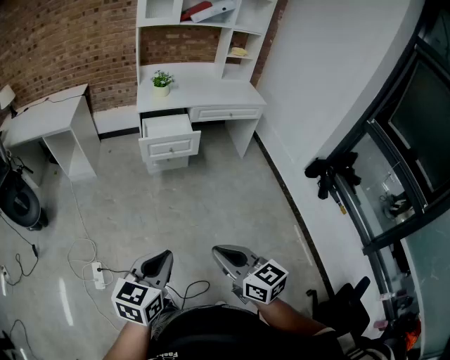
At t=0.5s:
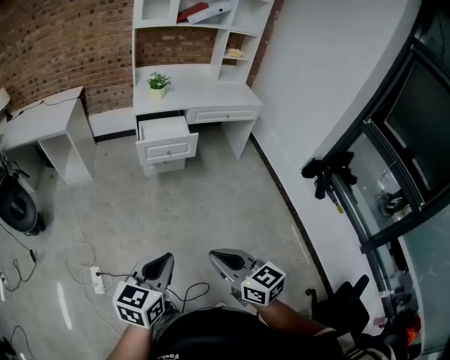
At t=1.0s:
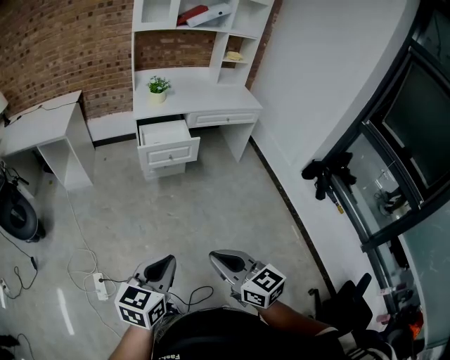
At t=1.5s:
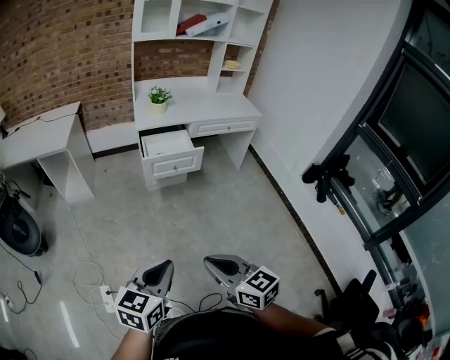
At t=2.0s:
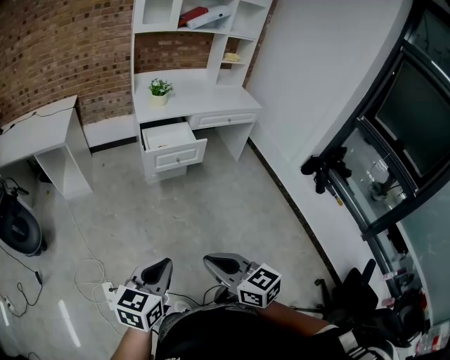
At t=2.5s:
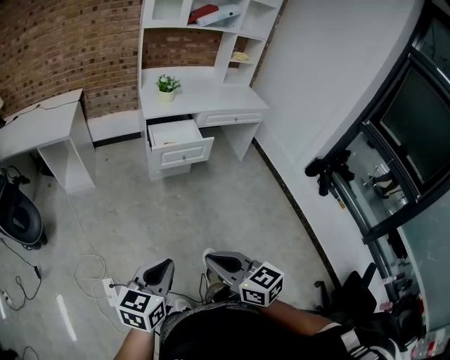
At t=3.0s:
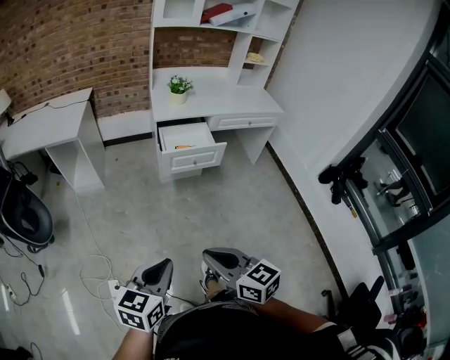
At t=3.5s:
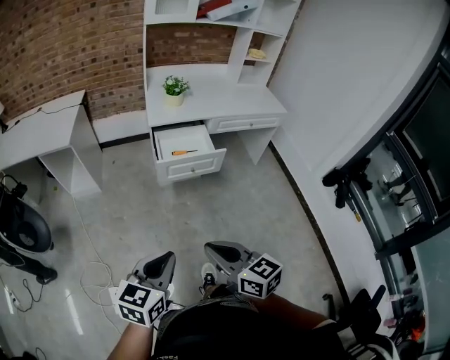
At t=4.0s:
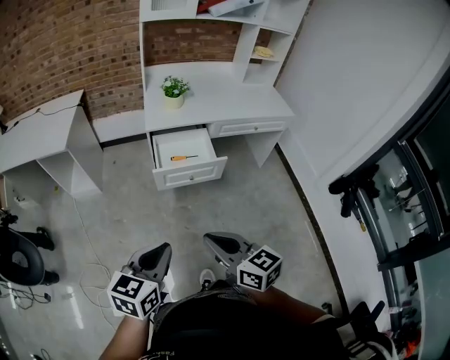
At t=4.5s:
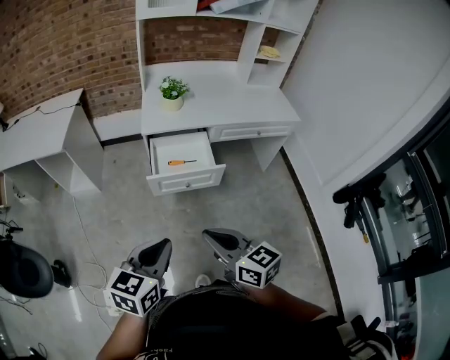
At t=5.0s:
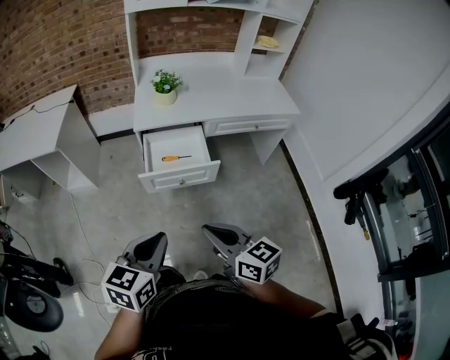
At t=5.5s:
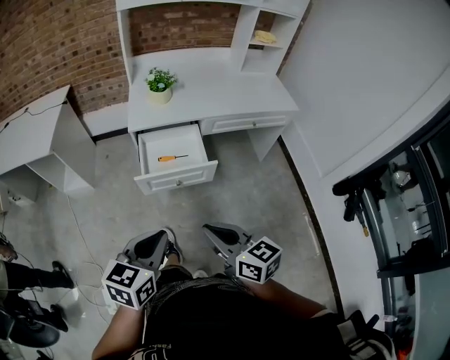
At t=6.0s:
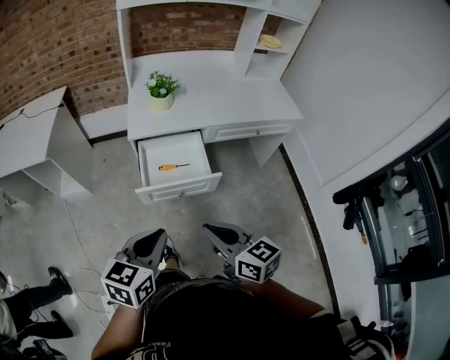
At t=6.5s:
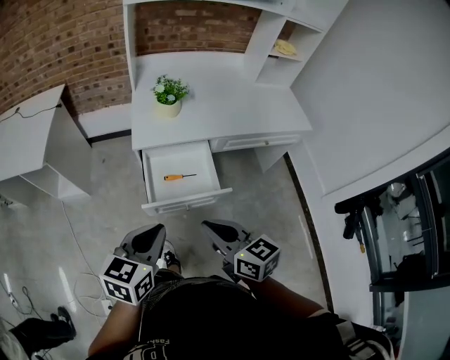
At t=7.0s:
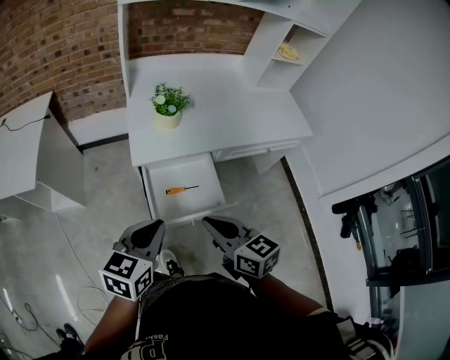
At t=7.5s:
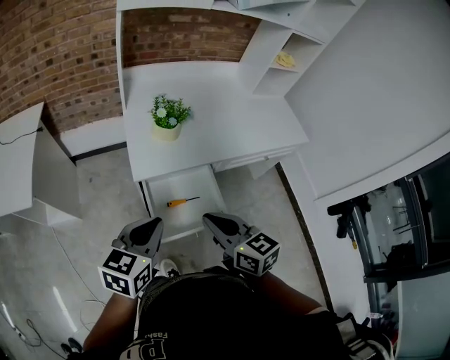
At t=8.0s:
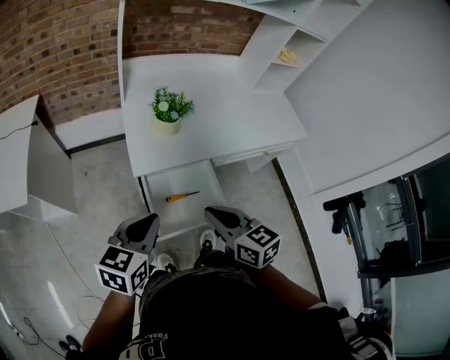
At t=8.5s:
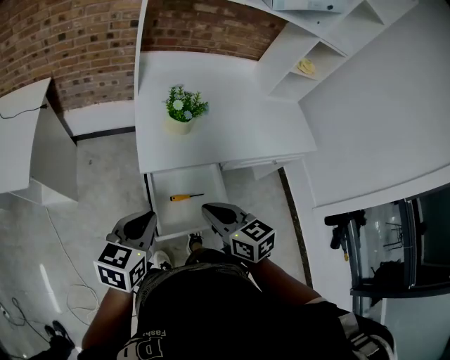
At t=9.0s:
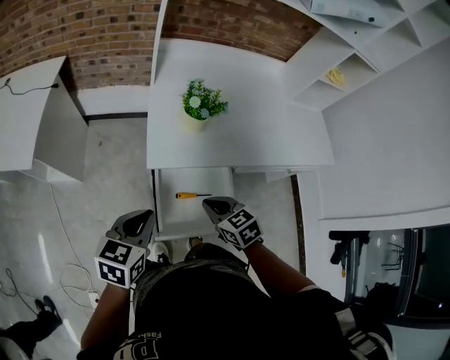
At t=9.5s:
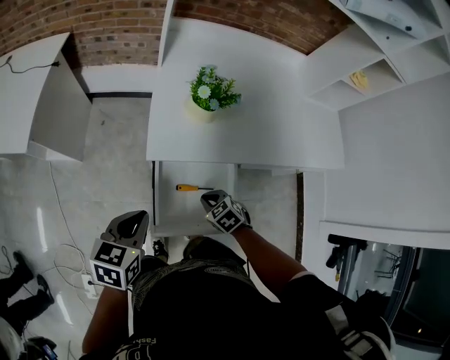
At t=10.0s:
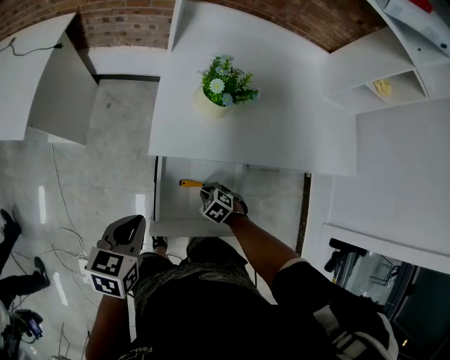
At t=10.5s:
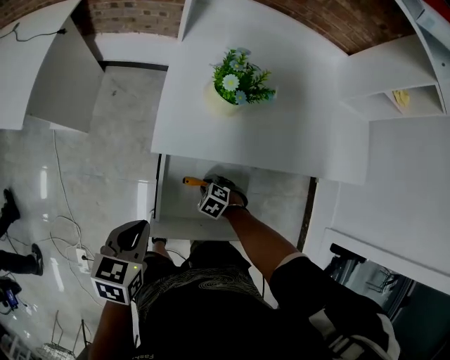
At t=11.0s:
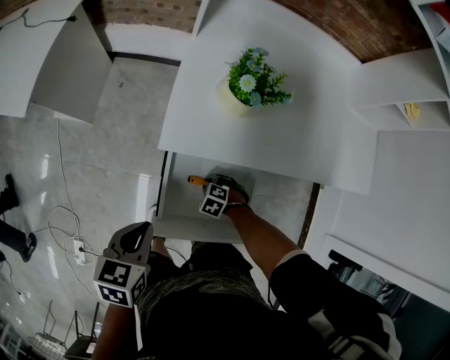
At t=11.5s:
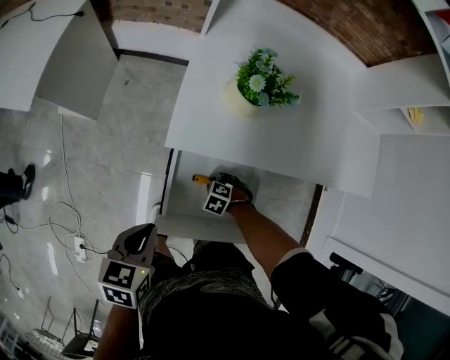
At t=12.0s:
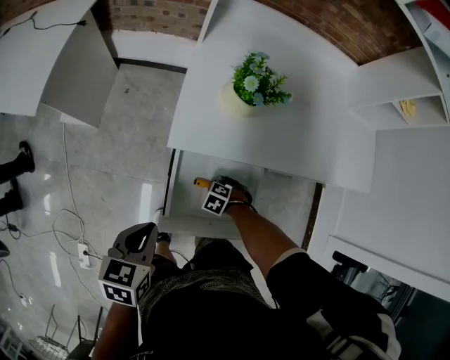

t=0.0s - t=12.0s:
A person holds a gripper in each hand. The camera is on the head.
t=0.0s - t=2.0s: Both grippers move to the left, approximately 15 cm.
t=2.0s - t=4.0s: The two grippers go roughly 25 cm forward.
t=4.0s - t=6.0s: The two grippers go roughly 20 cm forward and to the right.
t=6.0s - t=8.0s: Both grippers travel together forward and to the left, approximately 30 cm.
t=8.0s - t=10.0s: The left gripper is displaced downward by roughly 10 cm, and swivels about 30 degrees. Meanwhile the right gripper goes about 35 cm downward, and tilts its fingers about 50 degrees downward.
t=10.0s - t=12.0s: The right gripper shifts about 5 cm downward, and swivels about 20 degrees.

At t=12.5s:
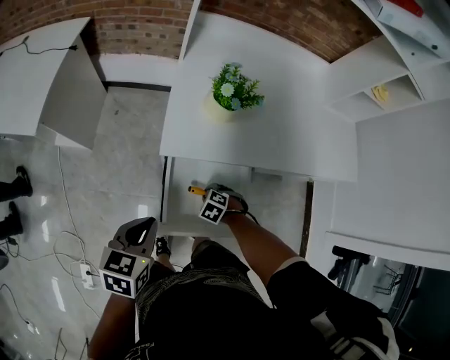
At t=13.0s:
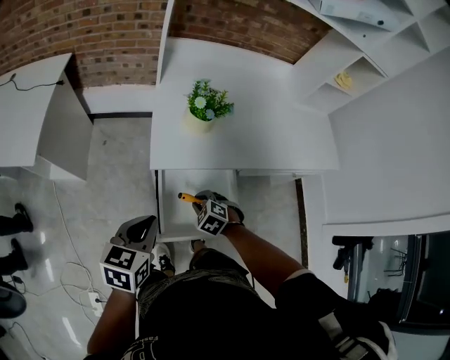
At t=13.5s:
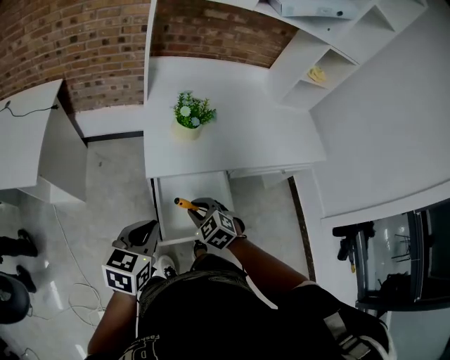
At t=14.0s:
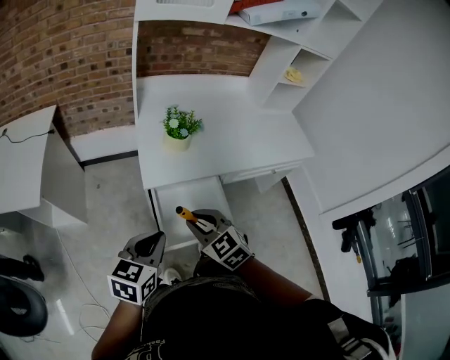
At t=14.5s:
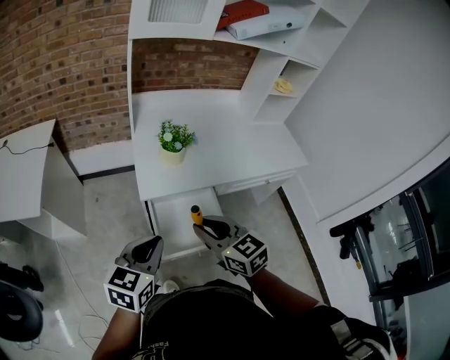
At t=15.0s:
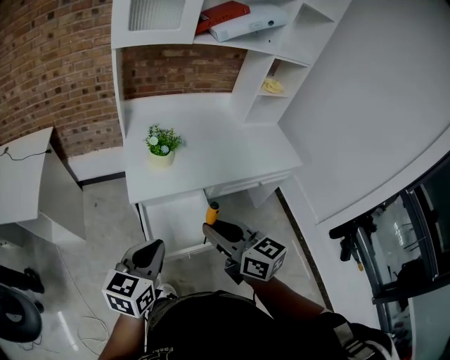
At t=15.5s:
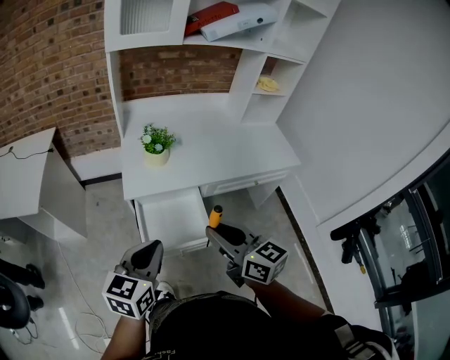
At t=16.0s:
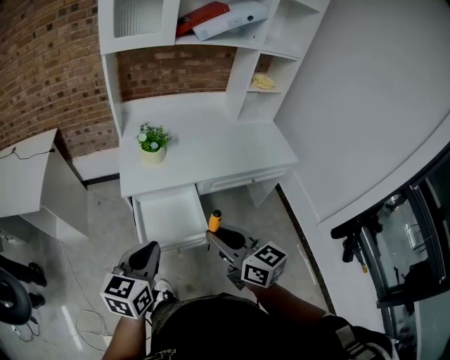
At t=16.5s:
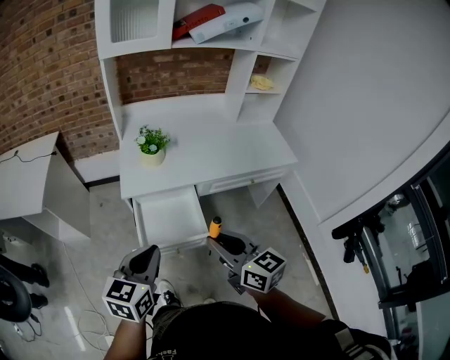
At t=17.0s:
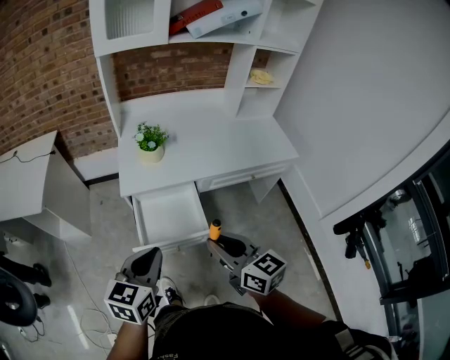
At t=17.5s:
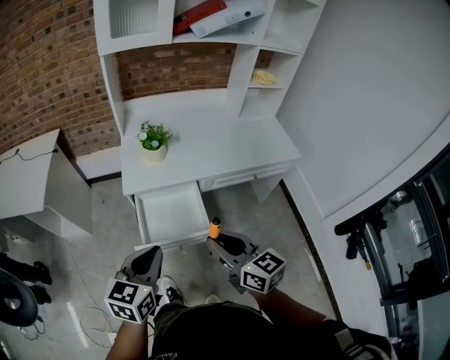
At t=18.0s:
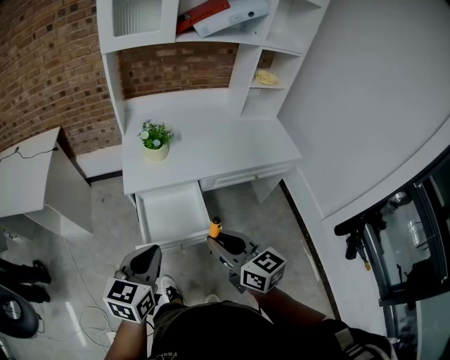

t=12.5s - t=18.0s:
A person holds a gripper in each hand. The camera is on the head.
t=12.5s - t=14.5s: The left gripper goes approximately 15 cm upward, and rotates some 30 degrees; the right gripper goes about 40 cm upward, and tips its fingers upward by some 60 degrees.
t=14.5s - t=16.0s: The two grippers go some 15 cm to the right and backward.
t=16.0s - t=18.0s: There are only small adjustments of the grippers.

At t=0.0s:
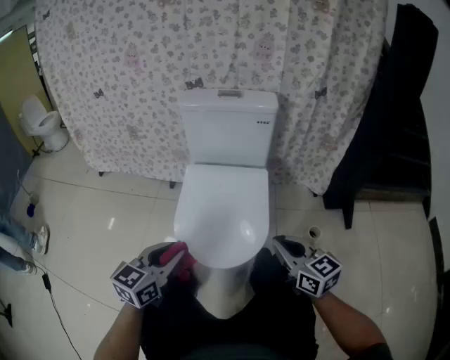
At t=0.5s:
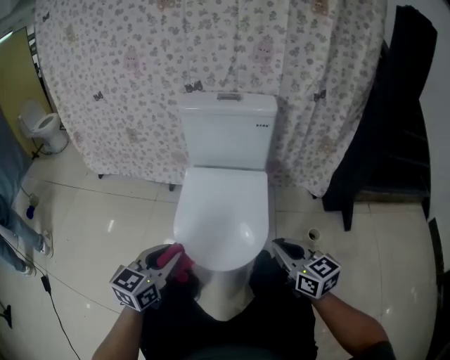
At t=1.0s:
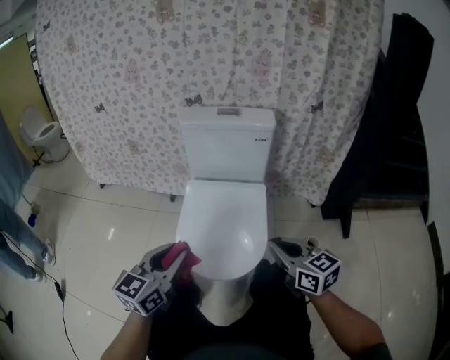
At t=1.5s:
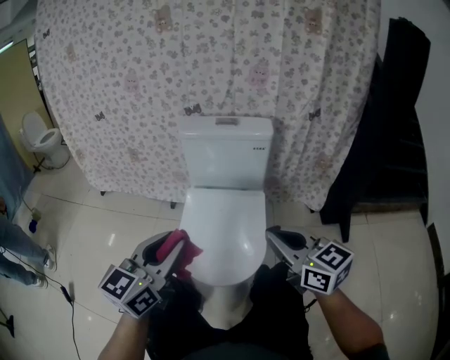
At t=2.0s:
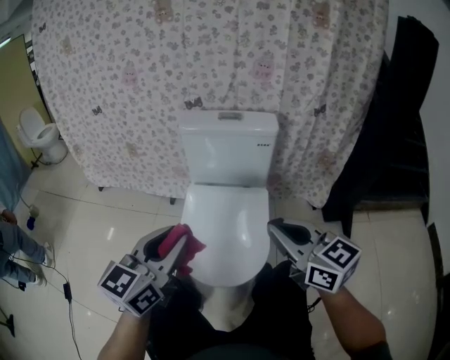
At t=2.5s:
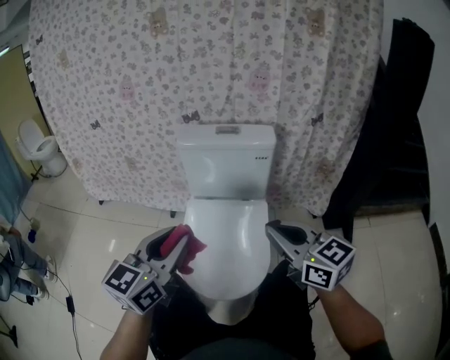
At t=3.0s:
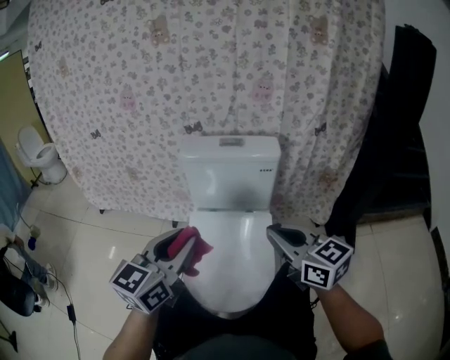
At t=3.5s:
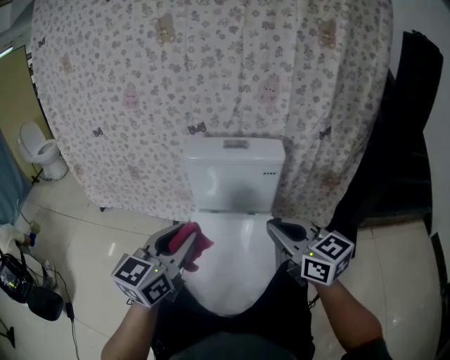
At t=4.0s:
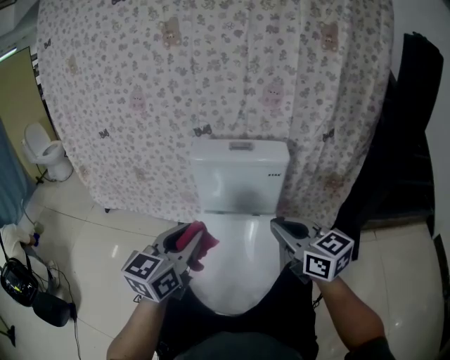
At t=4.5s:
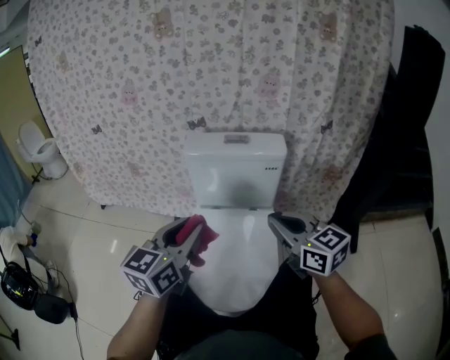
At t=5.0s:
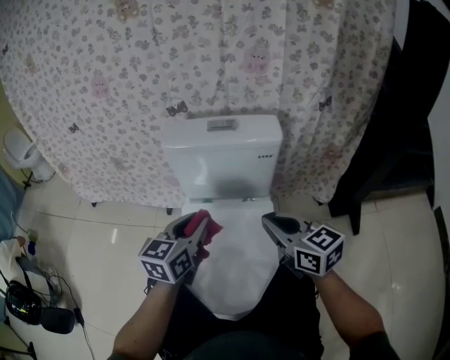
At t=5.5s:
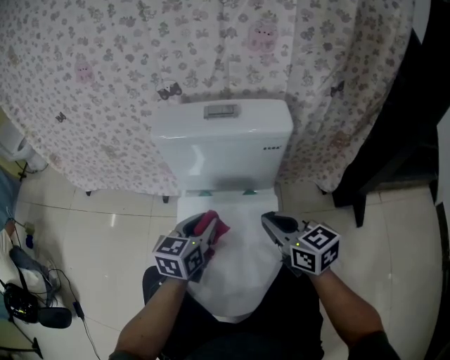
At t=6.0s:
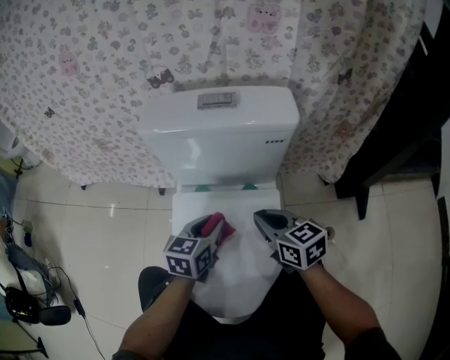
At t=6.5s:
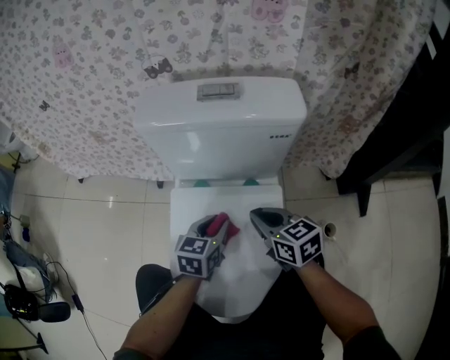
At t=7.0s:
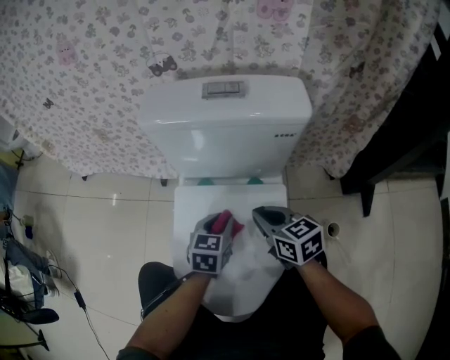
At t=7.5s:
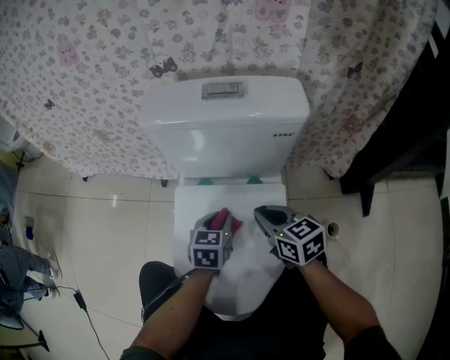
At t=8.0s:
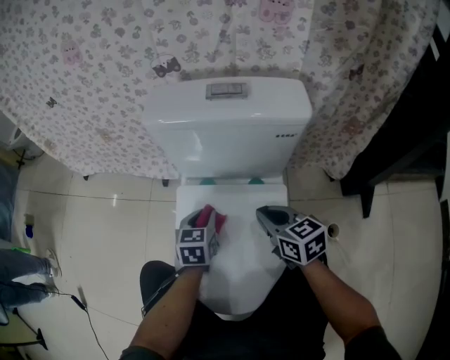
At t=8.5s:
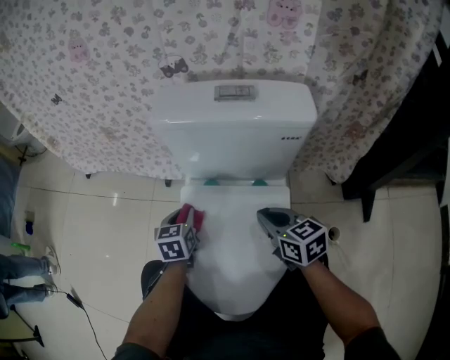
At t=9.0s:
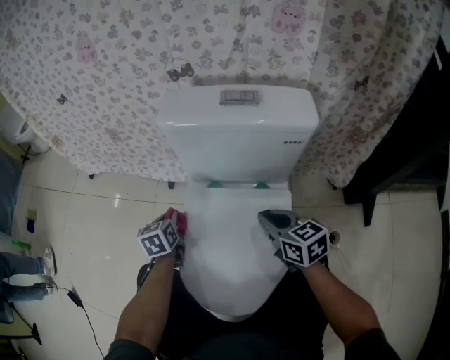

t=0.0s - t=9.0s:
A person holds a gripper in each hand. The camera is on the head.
t=0.0s - t=2.0s: Both grippers move upward, some 15 cm.
t=2.0s - t=4.5s: The two grippers go roughly 10 cm forward.
t=4.5s - t=7.0s: Both grippers move downward and forward, approximately 30 cm. The left gripper tilts its fingers about 30 degrees downward. The right gripper rotates some 20 degrees.
t=7.0s - t=9.0s: The left gripper shifts some 25 cm to the left and forward, and rotates approximately 30 degrees.
